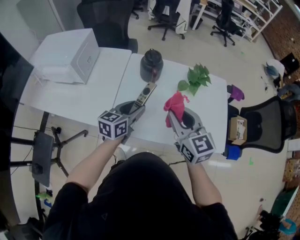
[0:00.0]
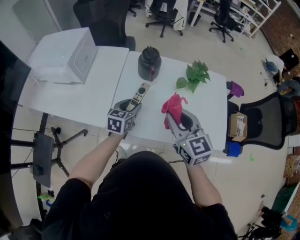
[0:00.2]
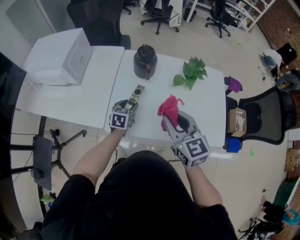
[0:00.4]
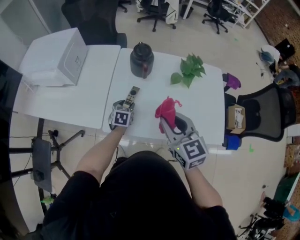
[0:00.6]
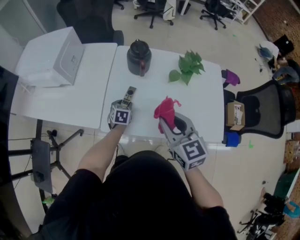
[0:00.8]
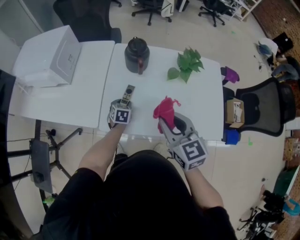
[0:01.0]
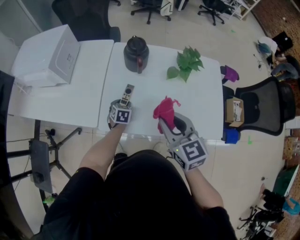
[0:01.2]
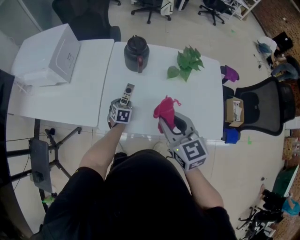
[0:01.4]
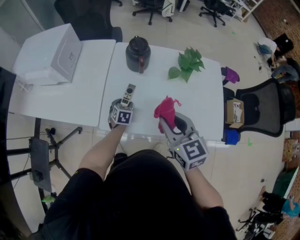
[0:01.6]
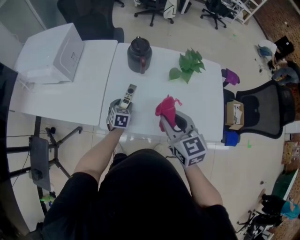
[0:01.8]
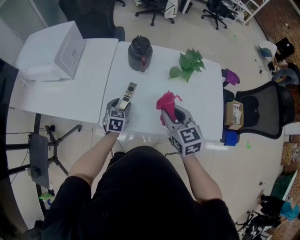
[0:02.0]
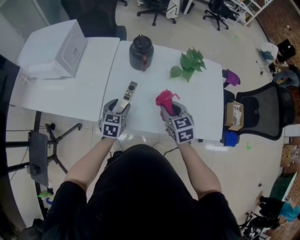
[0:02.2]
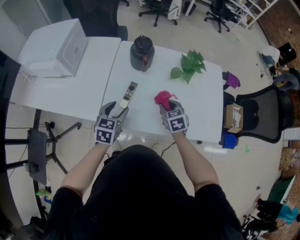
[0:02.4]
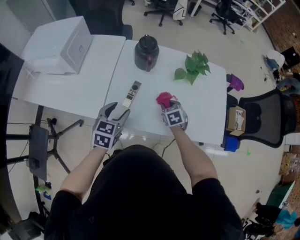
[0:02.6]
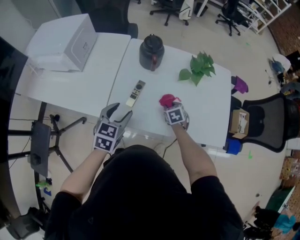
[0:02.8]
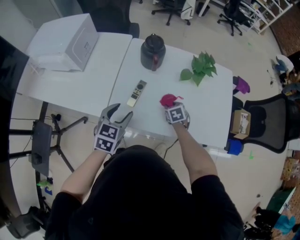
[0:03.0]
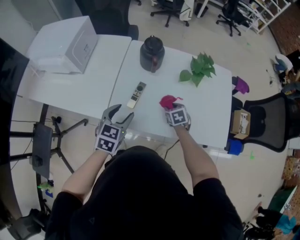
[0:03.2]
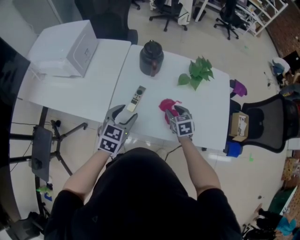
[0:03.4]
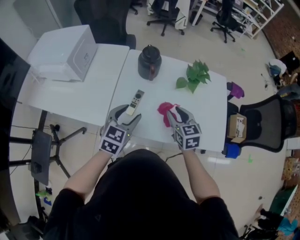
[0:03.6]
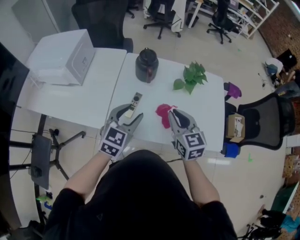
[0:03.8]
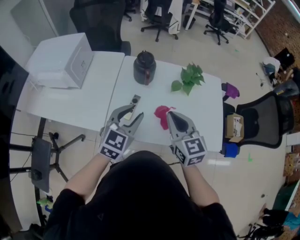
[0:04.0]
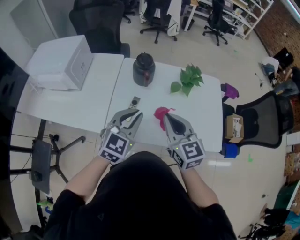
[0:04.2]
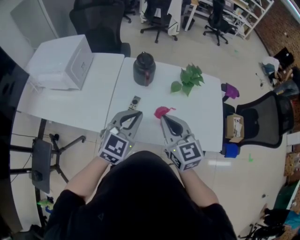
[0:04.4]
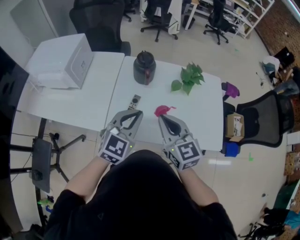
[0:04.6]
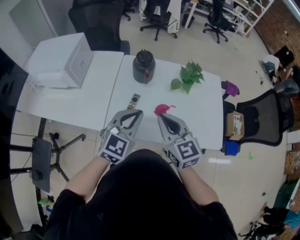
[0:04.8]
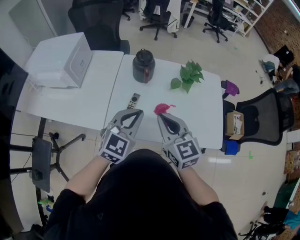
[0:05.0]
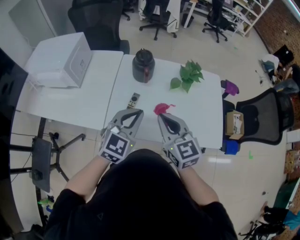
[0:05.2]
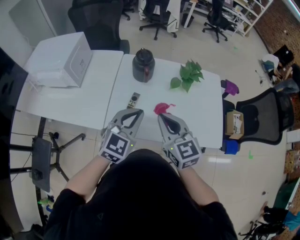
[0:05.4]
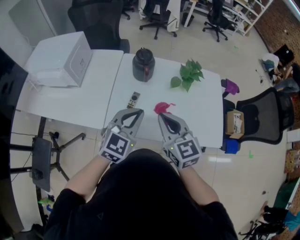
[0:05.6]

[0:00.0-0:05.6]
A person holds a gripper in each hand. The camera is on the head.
0:00.0 to 0:01.4: The left gripper heads downward, covering approximately 25 cm, and angles its fingers downward, by roughly 30 degrees. The right gripper changes place by some 5 cm.
0:01.4 to 0:02.8: The right gripper goes about 25 cm downward, and tilts its fingers about 40 degrees downward, while the left gripper is displaced upward and backward by roughly 20 cm, and rotates some 20 degrees.
0:02.8 to 0:04.2: The left gripper shifts about 15 cm upward and to the right, changes its angle by about 30 degrees, and closes, while the right gripper moves upward, approximately 30 cm, tilts its fingers roughly 50 degrees upward, and closes its fingers.
0:04.2 to 0:05.6: The grippers move only a little.

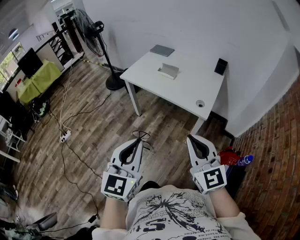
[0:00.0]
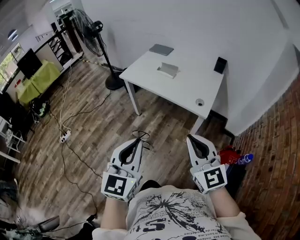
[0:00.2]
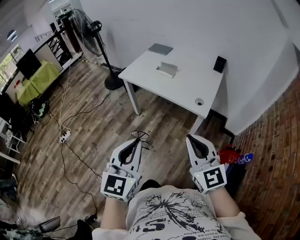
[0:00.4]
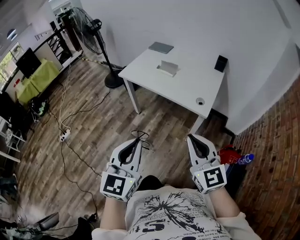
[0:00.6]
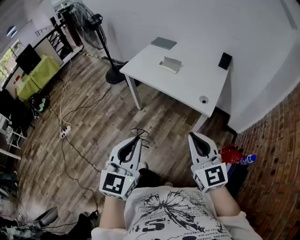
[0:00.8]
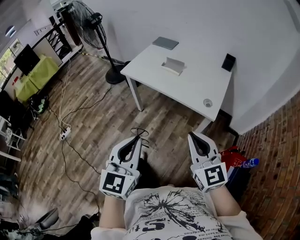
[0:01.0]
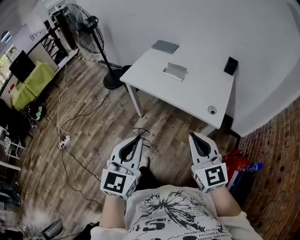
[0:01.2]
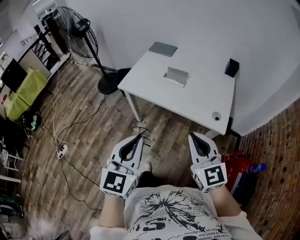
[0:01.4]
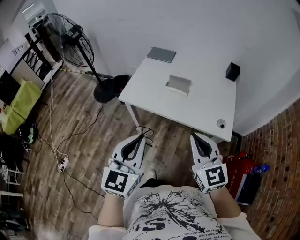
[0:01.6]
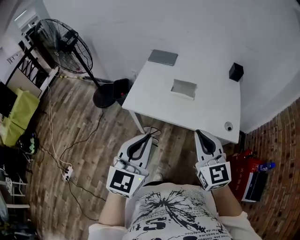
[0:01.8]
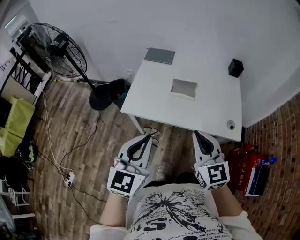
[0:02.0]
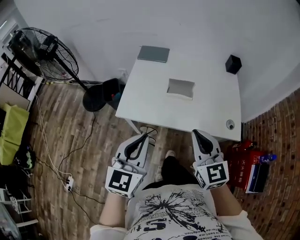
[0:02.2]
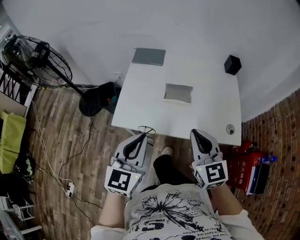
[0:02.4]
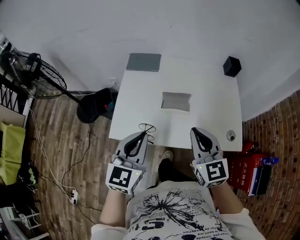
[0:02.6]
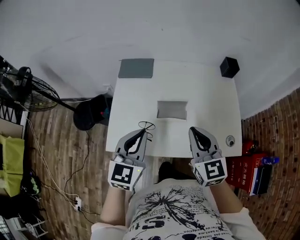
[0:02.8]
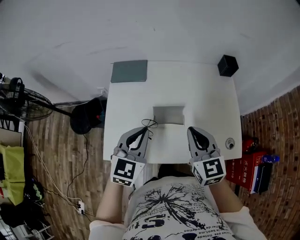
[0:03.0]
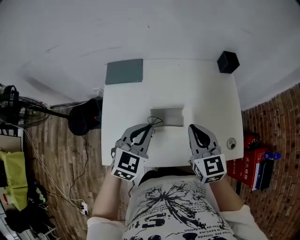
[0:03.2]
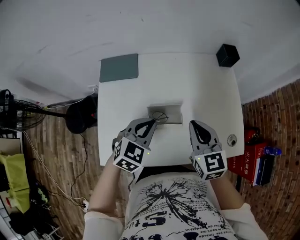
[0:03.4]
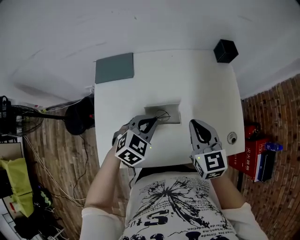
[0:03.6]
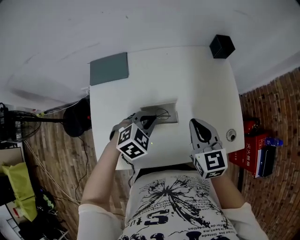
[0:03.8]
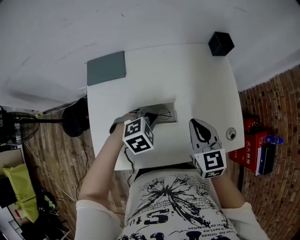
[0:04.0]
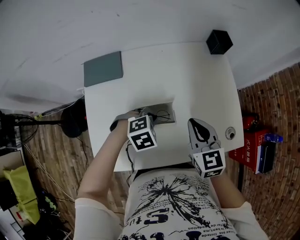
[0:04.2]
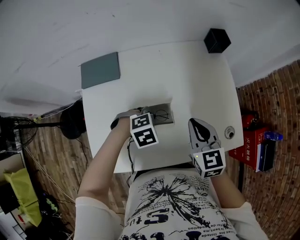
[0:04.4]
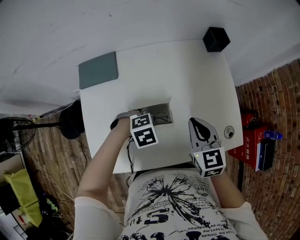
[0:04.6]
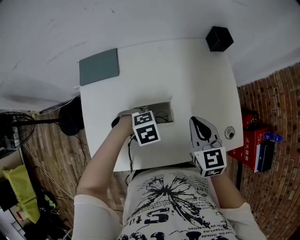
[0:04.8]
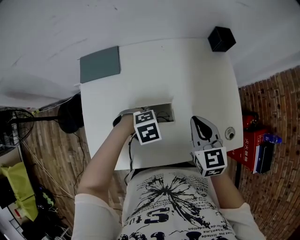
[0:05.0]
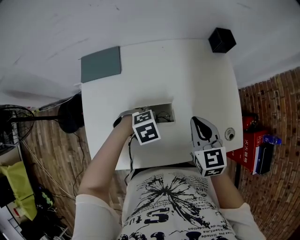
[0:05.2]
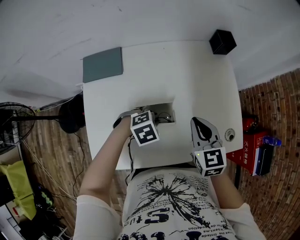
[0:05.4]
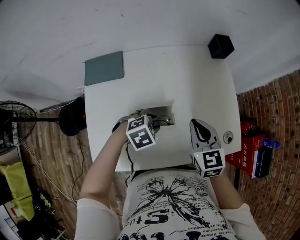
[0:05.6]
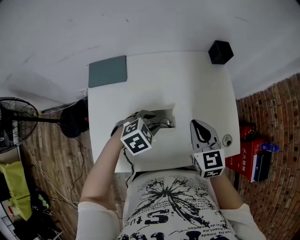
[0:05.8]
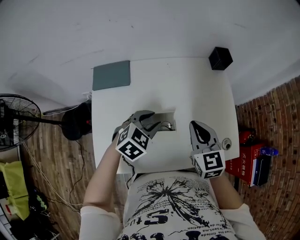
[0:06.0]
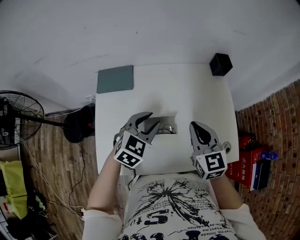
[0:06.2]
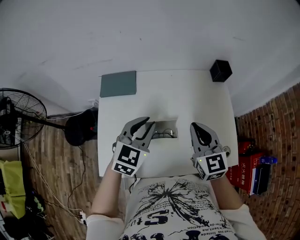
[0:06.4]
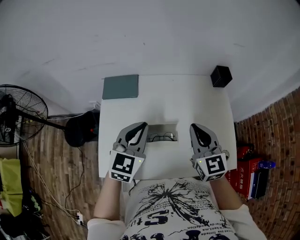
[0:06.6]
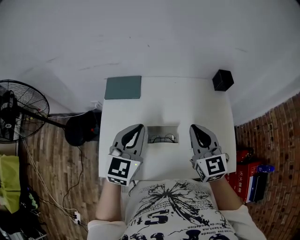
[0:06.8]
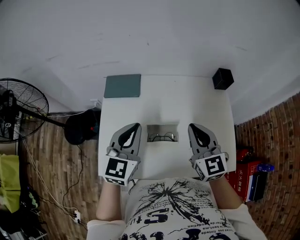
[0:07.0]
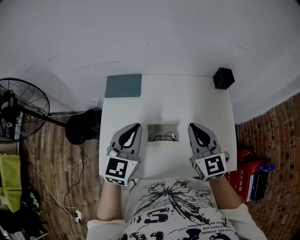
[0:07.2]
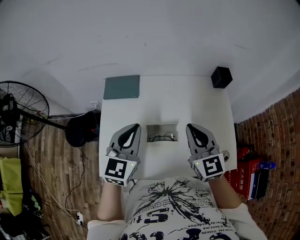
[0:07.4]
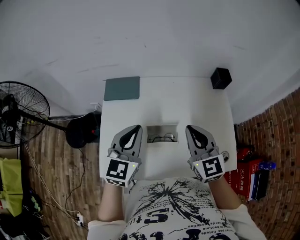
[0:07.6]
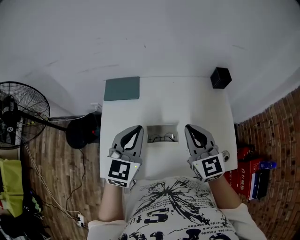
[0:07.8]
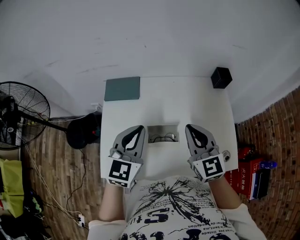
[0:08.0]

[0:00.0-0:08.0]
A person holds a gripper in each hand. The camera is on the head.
0:00.0 to 0:01.6: The two grippers go about 35 cm forward and to the left.
0:01.6 to 0:03.2: The right gripper moves about 40 cm, and swivels roughly 30 degrees, while the left gripper moves about 50 cm, and swivels about 40 degrees.
0:03.2 to 0:04.8: The left gripper is displaced downward by approximately 20 cm, and tilts its fingers roughly 50 degrees downward; the right gripper goes about 5 cm downward.
0:04.8 to 0:06.4: The right gripper travels upward by about 10 cm. The left gripper travels upward by roughly 20 cm, and points its fingers roughly 50 degrees further upward.
0:06.4 to 0:08.0: The left gripper shifts by some 5 cm.

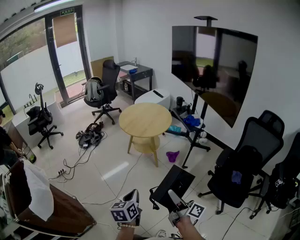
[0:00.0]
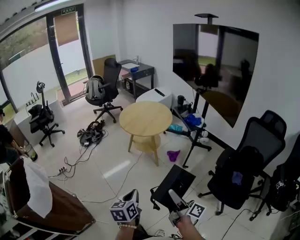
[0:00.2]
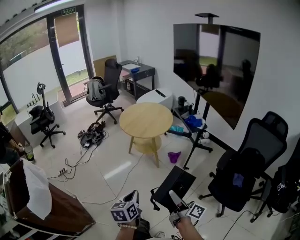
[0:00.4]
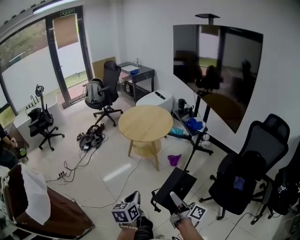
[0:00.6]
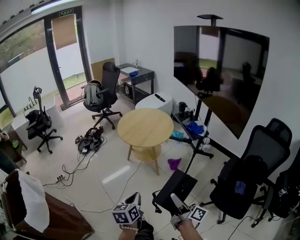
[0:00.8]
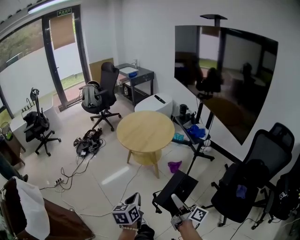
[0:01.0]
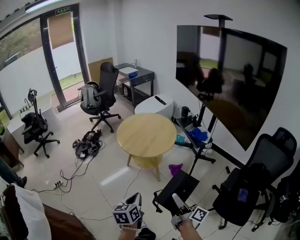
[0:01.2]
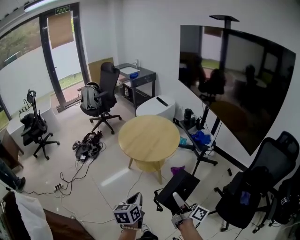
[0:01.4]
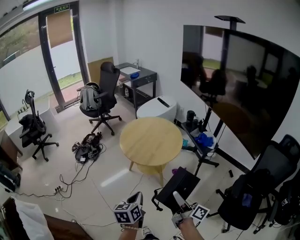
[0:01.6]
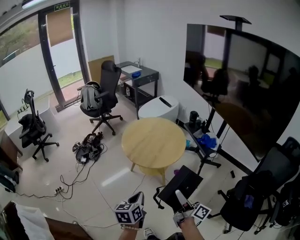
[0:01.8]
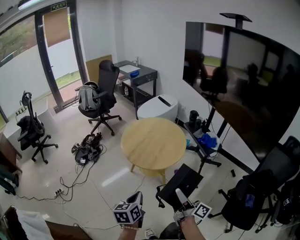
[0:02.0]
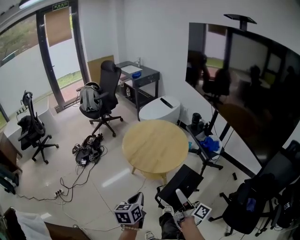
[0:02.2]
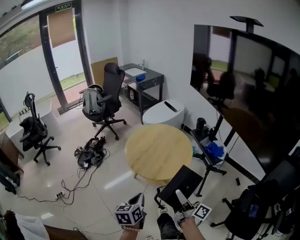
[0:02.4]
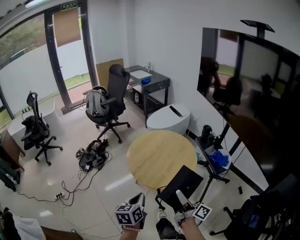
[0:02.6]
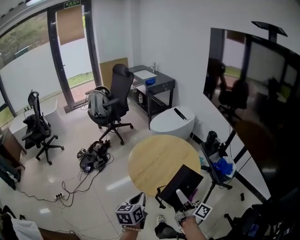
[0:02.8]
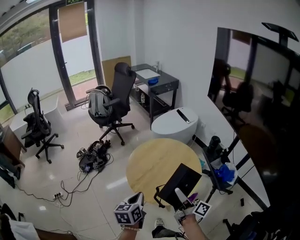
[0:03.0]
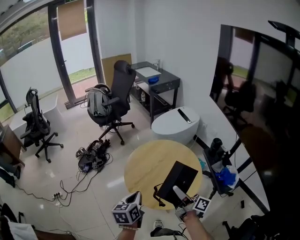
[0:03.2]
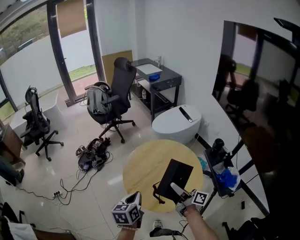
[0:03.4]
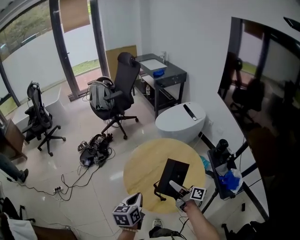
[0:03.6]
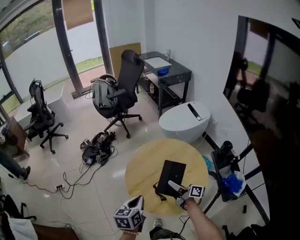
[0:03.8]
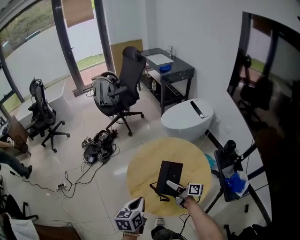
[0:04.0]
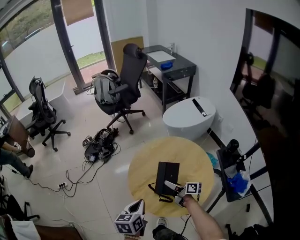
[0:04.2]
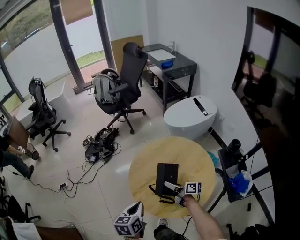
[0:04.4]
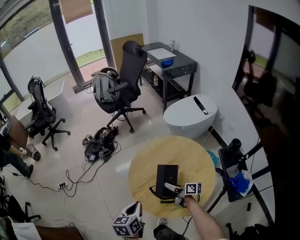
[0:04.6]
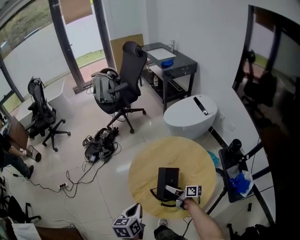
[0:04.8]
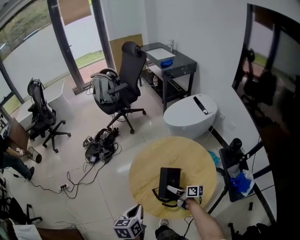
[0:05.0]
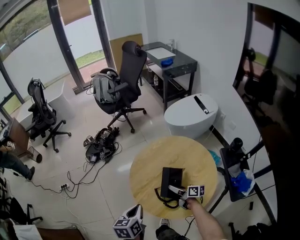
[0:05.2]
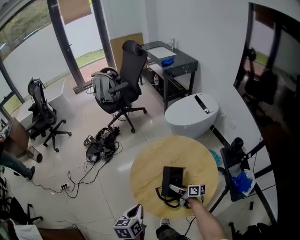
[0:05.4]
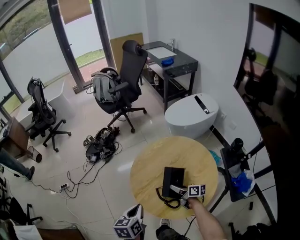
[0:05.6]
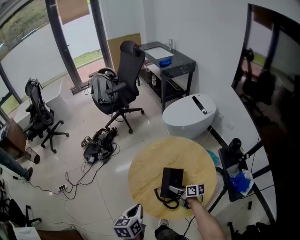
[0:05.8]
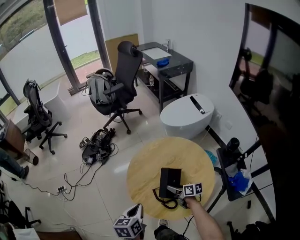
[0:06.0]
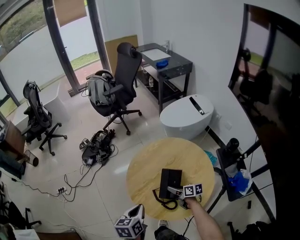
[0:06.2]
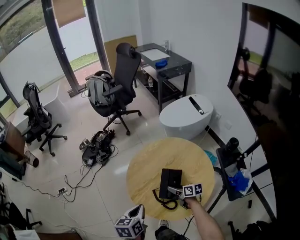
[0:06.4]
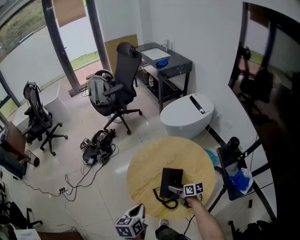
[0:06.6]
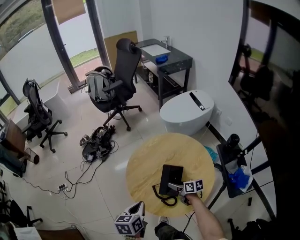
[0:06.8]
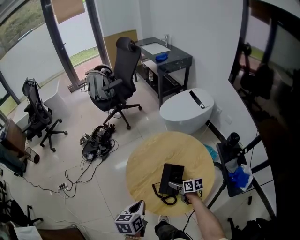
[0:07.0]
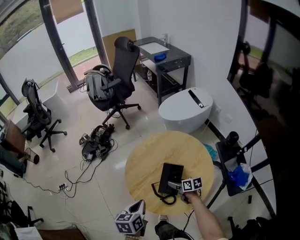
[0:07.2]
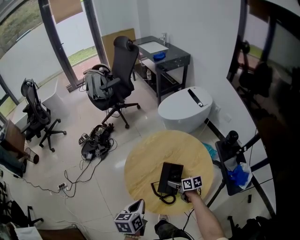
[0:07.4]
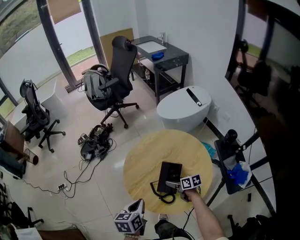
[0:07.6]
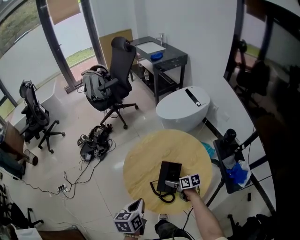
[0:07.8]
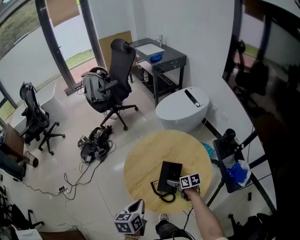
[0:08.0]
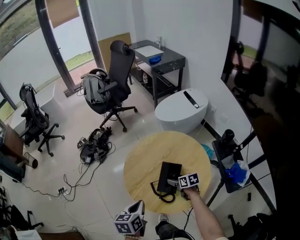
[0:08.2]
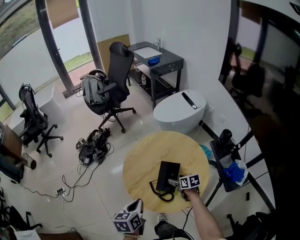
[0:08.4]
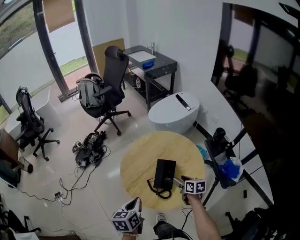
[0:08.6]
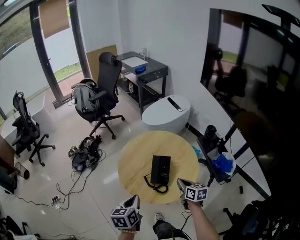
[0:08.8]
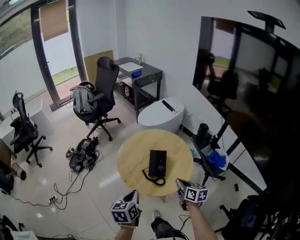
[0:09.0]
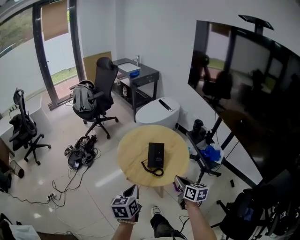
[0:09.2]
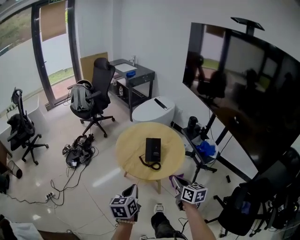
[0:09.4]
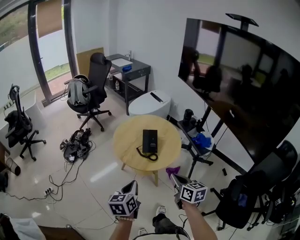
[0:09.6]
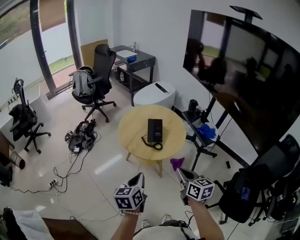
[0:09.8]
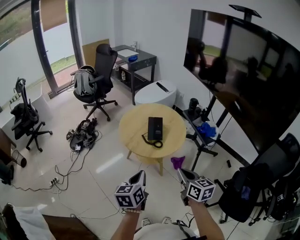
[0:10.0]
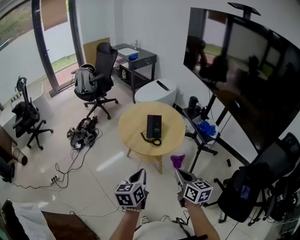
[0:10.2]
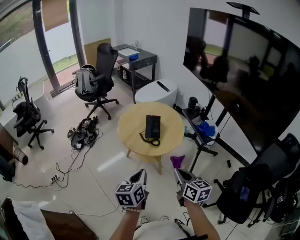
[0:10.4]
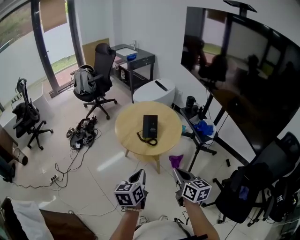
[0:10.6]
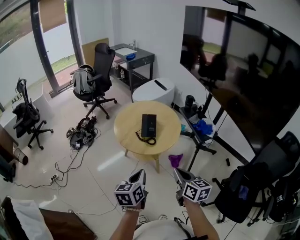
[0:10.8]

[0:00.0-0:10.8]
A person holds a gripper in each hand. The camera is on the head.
0:00.0 to 0:01.6: Both grippers move forward, roughly 30 cm.
0:01.6 to 0:03.0: The two grippers go some 30 cm forward.
0:03.0 to 0:04.6: The left gripper is displaced downward and forward by about 10 cm; the right gripper shifts some 30 cm downward and forward, and swivels approximately 40 degrees.
0:04.6 to 0:06.2: The right gripper moves downward, about 5 cm, and swivels some 20 degrees.
0:06.2 to 0:07.8: The right gripper opens.
0:07.8 to 0:09.2: The right gripper ends up about 30 cm from where it was, changes its angle by roughly 40 degrees, and closes. Meanwhile the left gripper changes place by approximately 15 cm.
0:09.2 to 0:10.8: The left gripper goes some 15 cm backward and to the right, while the right gripper moves backward, approximately 20 cm.
